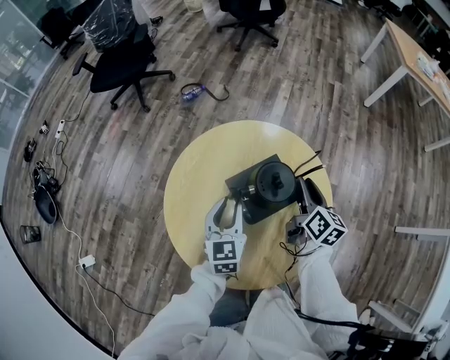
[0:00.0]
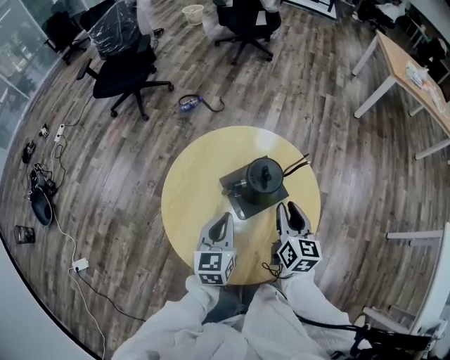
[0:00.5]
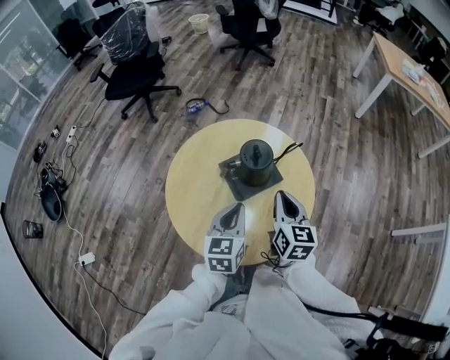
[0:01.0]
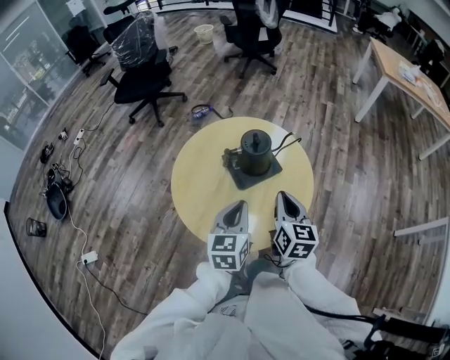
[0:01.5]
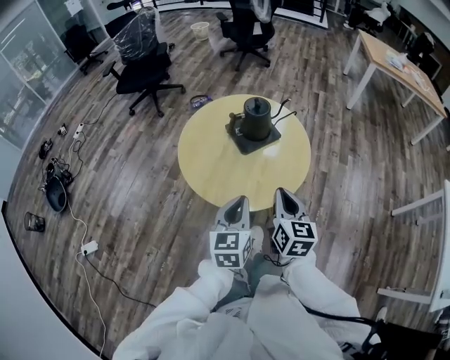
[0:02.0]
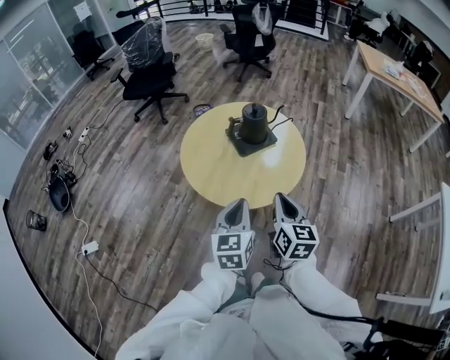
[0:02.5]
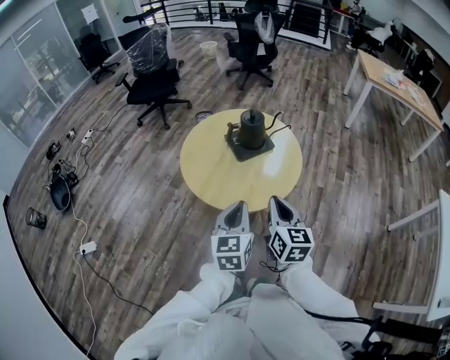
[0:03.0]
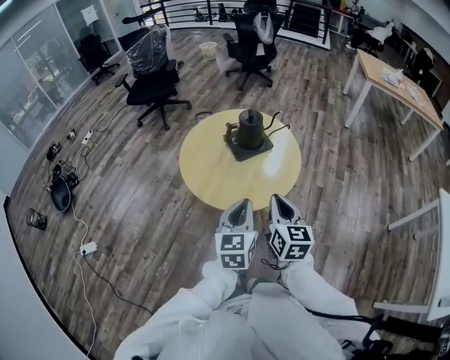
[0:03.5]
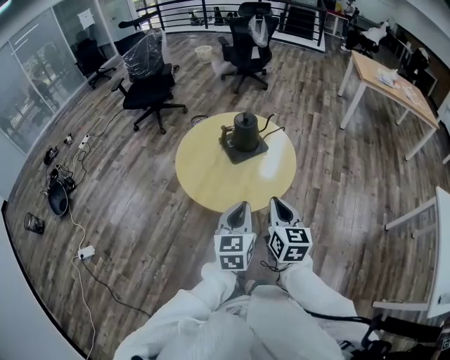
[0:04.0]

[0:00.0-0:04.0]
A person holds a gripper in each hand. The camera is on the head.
0:00.0 to 0:02.0: The grippers both shift backward by approximately 35 cm. The right gripper rotates roughly 20 degrees, and closes its fingers; the left gripper closes.
0:02.0 to 0:04.0: The left gripper heads to the right and backward, covering some 10 cm, while the right gripper heads backward, covering about 5 cm.

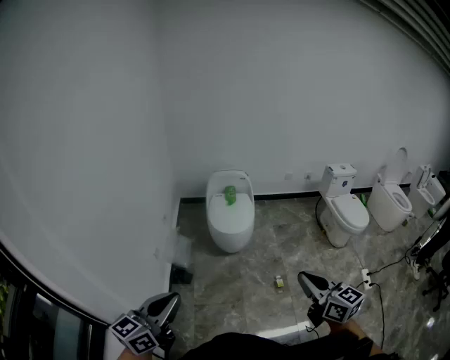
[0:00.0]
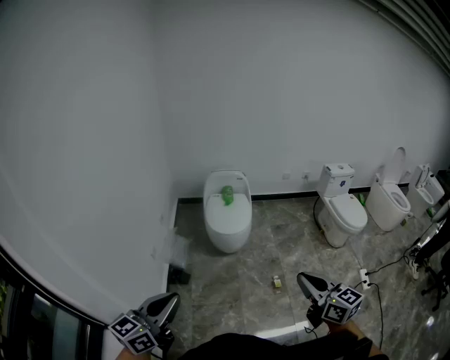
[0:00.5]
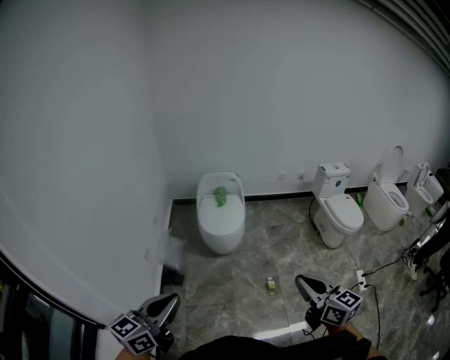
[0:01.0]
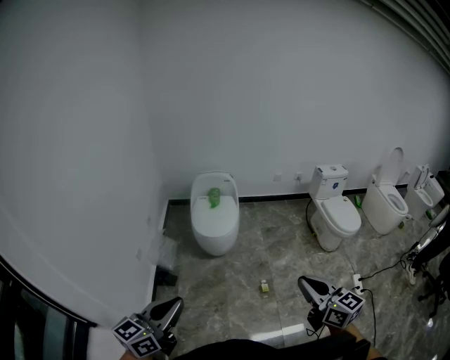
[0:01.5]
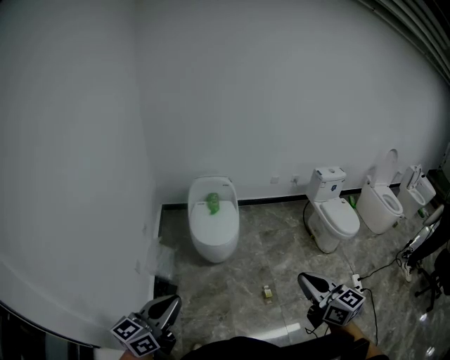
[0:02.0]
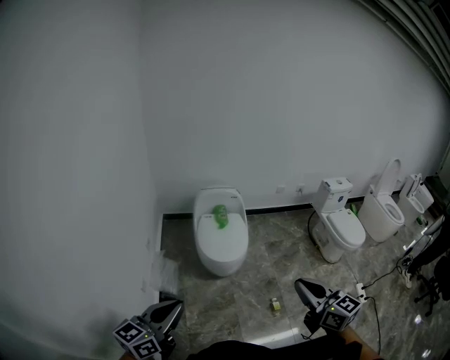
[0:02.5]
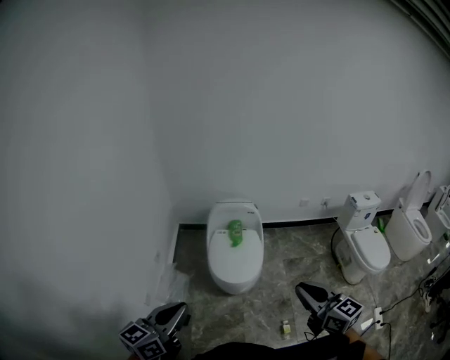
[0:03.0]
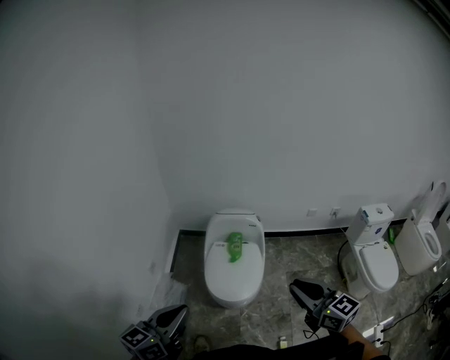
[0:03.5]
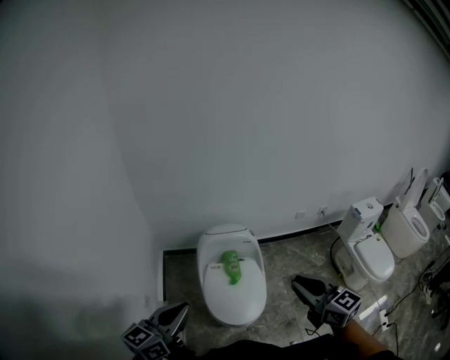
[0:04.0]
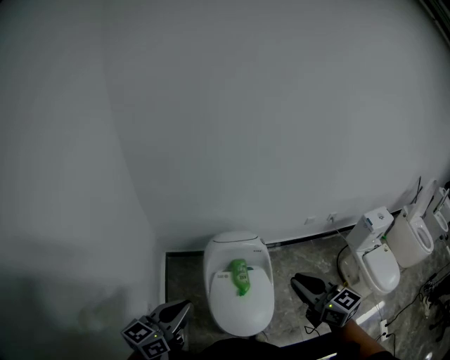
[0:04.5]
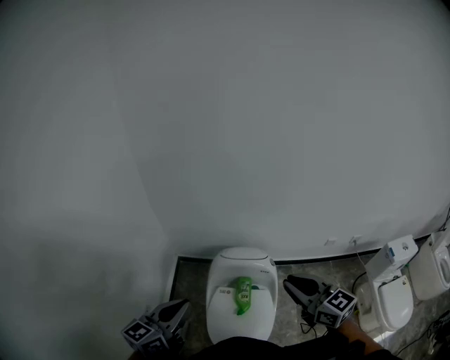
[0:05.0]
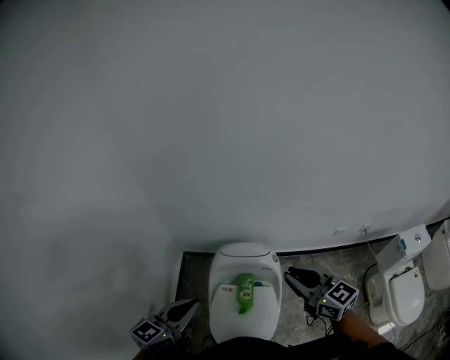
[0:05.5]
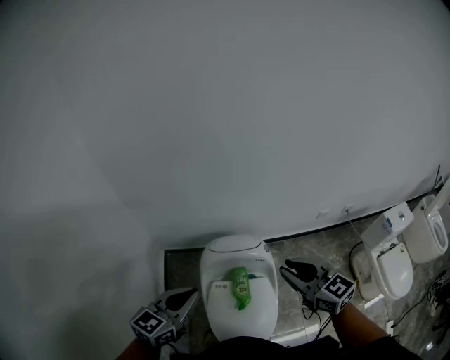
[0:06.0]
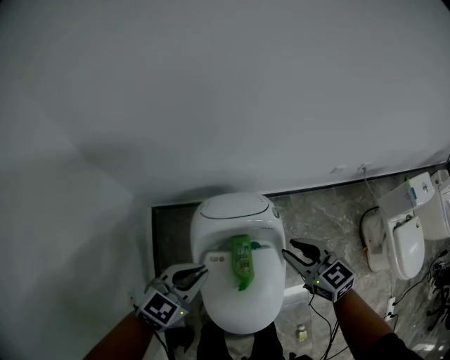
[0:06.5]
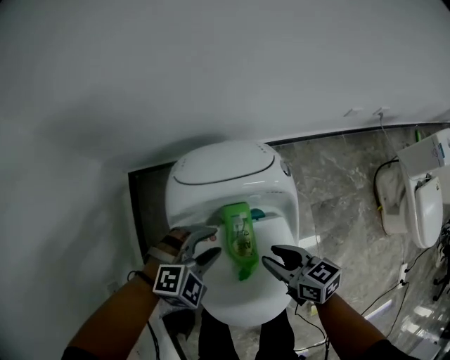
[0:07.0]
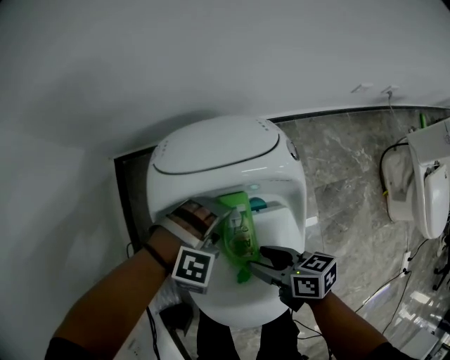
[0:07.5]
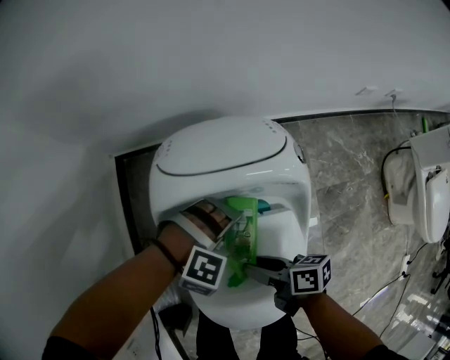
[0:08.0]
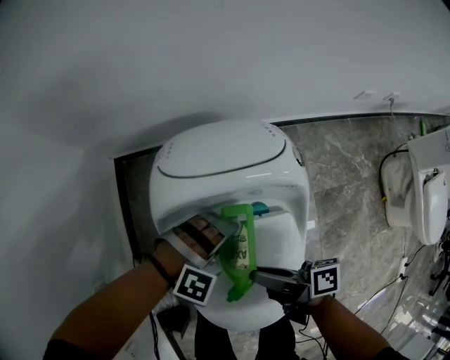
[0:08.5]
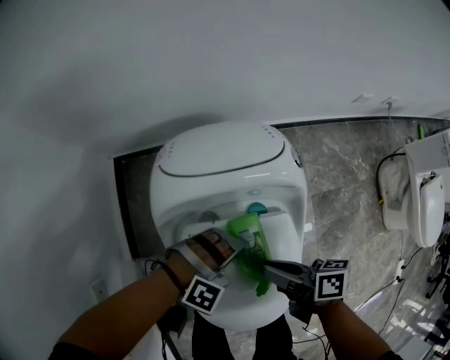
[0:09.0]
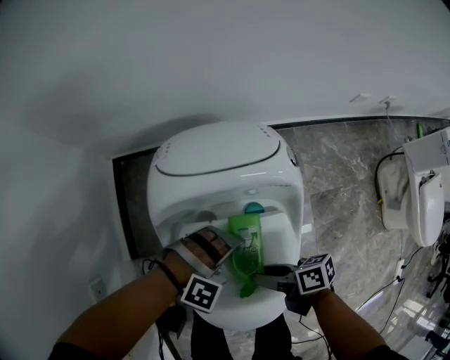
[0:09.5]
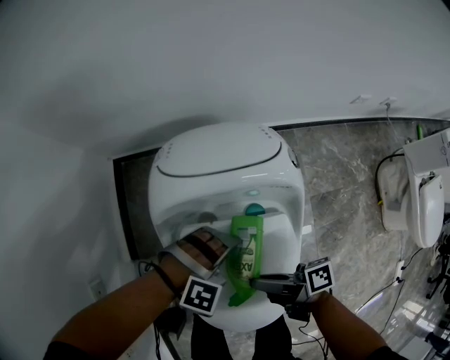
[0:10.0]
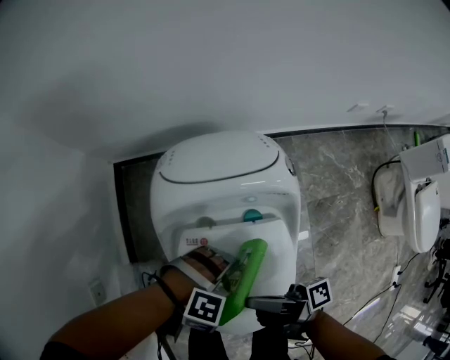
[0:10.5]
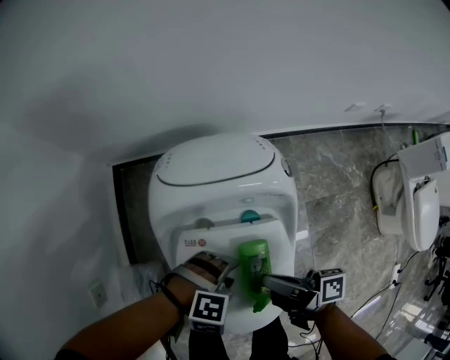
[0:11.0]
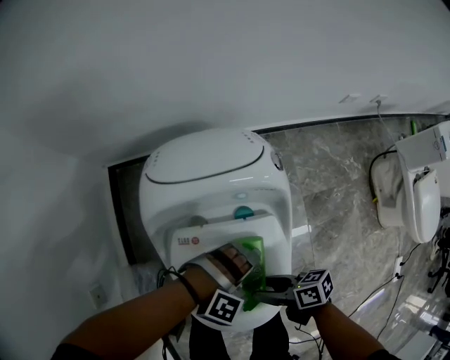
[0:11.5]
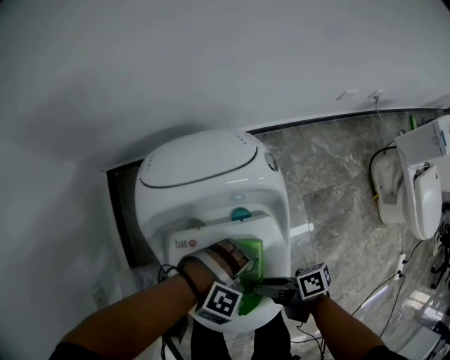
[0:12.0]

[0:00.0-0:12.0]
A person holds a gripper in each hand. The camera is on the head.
0:00.0 to 0:02.0: The grippers both shift forward by approximately 15 cm. The left gripper reaches approximately 15 cm to the right, then returns. Meanwhile the right gripper moves approximately 15 cm to the right and comes back.
0:02.0 to 0:04.0: The pair of grippers is taken forward, about 70 cm.
0:04.0 to 0:06.0: The grippers both shift forward by about 40 cm.
0:06.0 to 0:08.0: The two grippers go approximately 70 cm downward. The left gripper rolls clockwise, seen from behind, by approximately 80 degrees, and opens its fingers, while the right gripper twists about 70 degrees clockwise, seen from behind, and opens its fingers.
0:08.0 to 0:10.0: The left gripper moves some 5 cm; the right gripper moves up and down over approximately 5 cm, changing direction 2 times, and turns by approximately 20 degrees.
0:10.0 to 0:12.0: The left gripper moves about 10 cm, and opens up. Meanwhile the right gripper goes upward and returns, about 5 cm each way, and closes, then reopens.

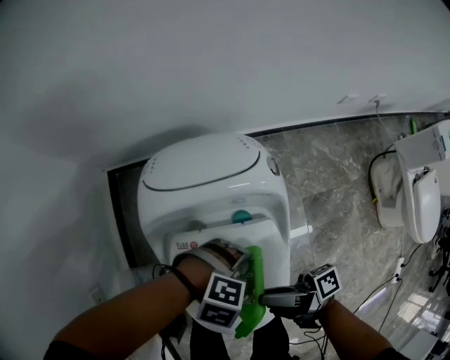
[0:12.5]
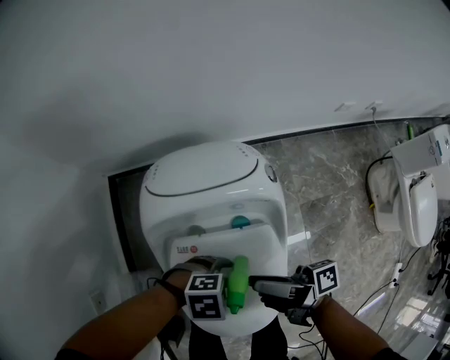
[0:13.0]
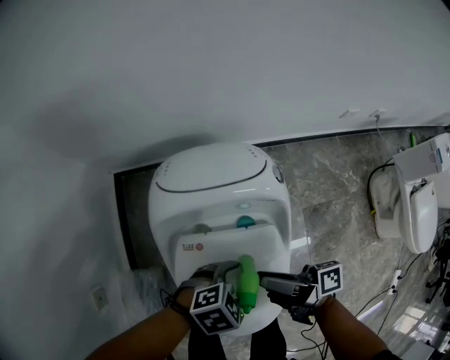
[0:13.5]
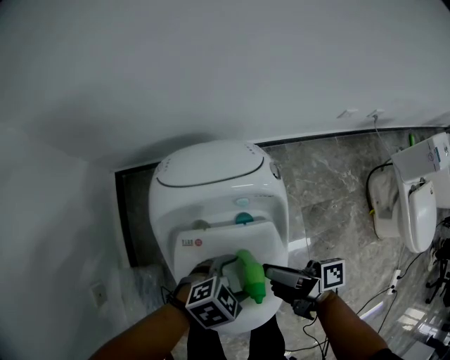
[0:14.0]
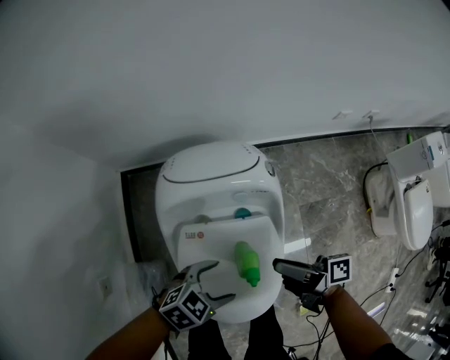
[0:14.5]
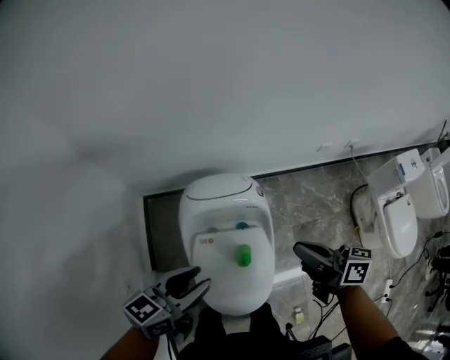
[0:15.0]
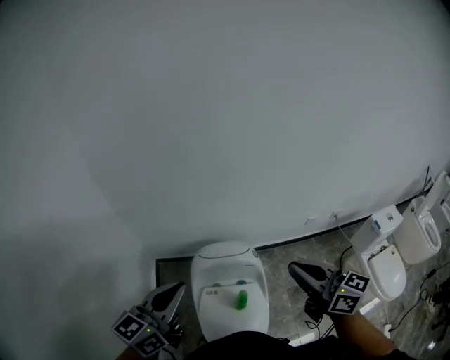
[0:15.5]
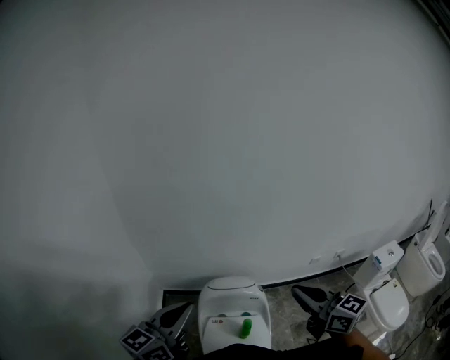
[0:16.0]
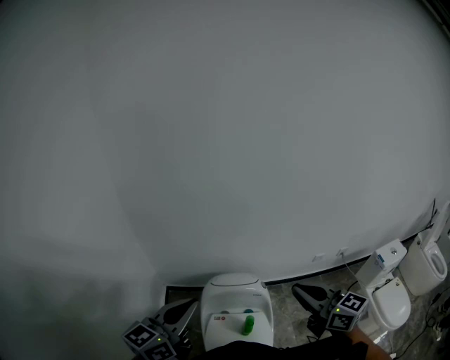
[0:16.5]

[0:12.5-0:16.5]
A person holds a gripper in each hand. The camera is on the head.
0:12.5 to 0:14.5: The left gripper shifts about 10 cm upward, and rotates around the line of its fingers by about 50 degrees, counterclockwise from behind, while the right gripper moves some 10 cm, and turns by some 20 degrees.
0:14.5 to 0:16.5: The two grippers go approximately 70 cm upward. The left gripper tilts its fingers roughly 50 degrees upward, and closes up, while the right gripper rolls counterclockwise, seen from behind, by about 80 degrees, and closes its fingers.

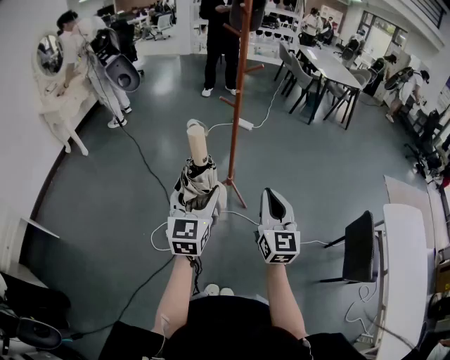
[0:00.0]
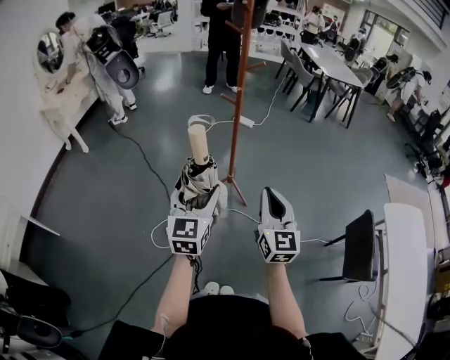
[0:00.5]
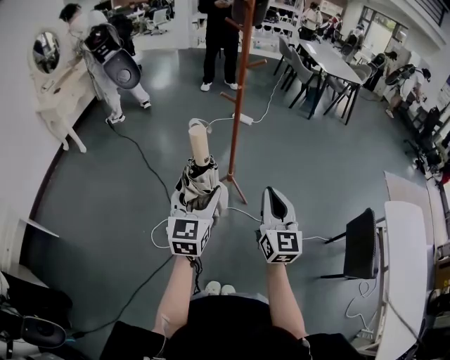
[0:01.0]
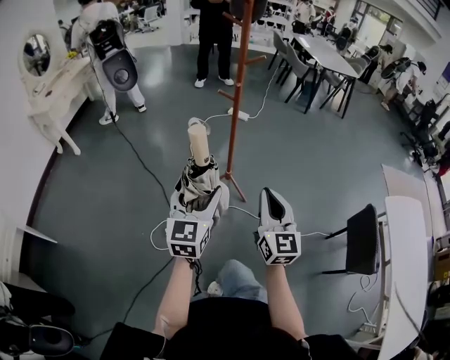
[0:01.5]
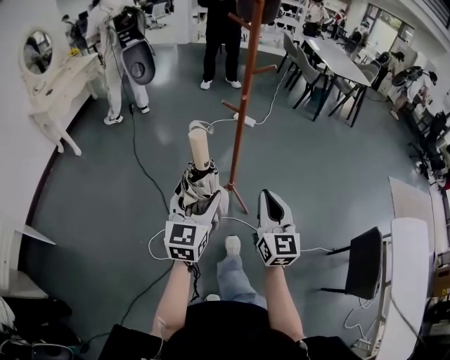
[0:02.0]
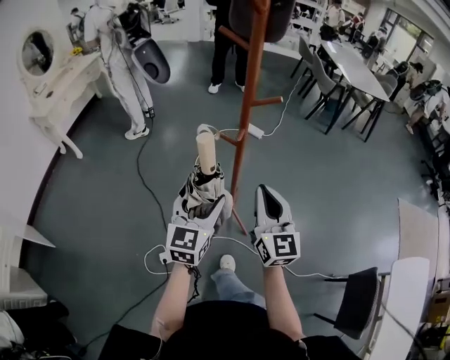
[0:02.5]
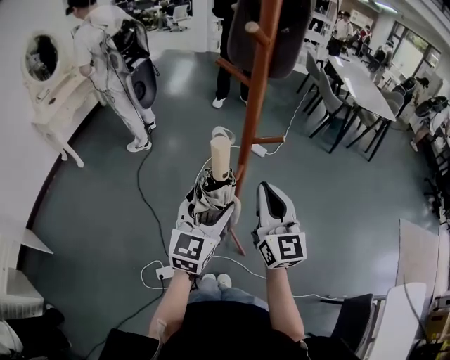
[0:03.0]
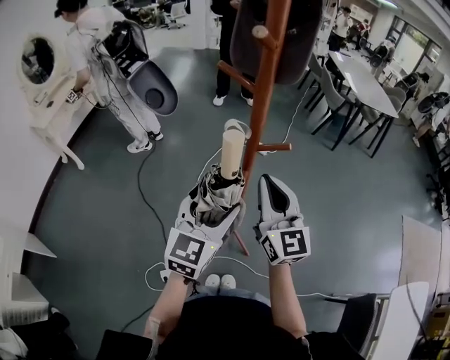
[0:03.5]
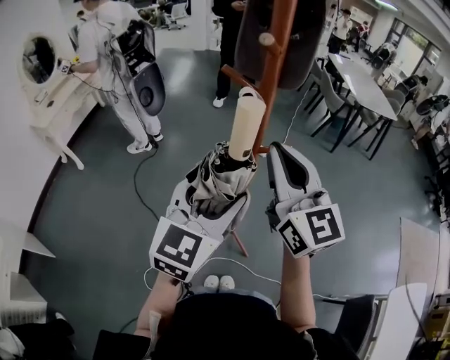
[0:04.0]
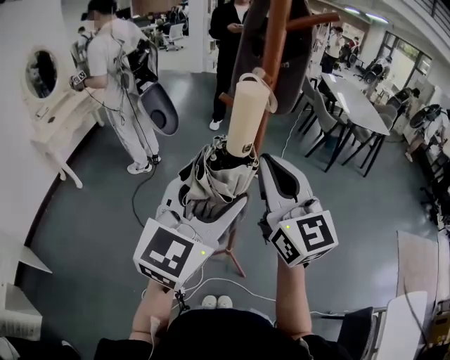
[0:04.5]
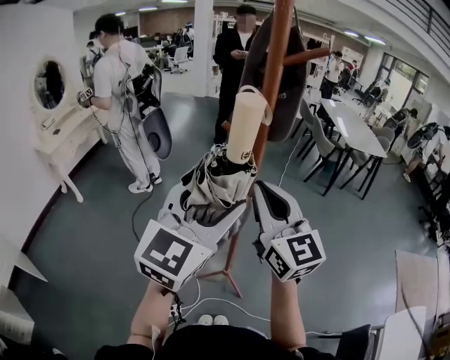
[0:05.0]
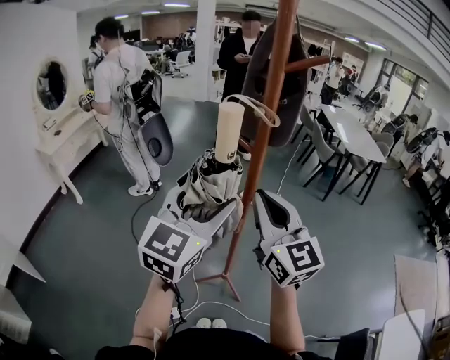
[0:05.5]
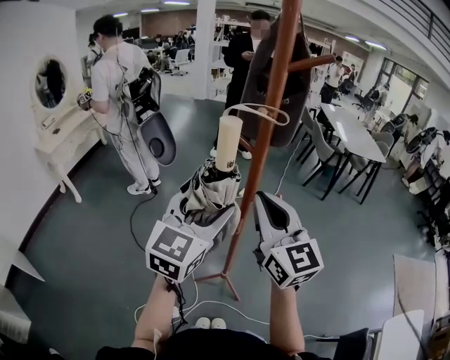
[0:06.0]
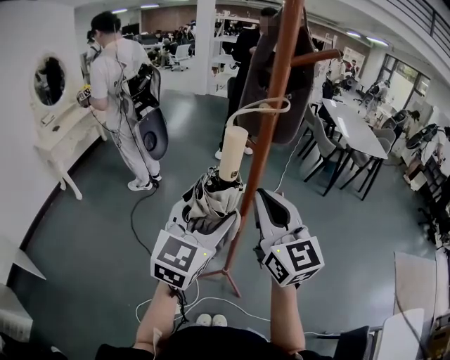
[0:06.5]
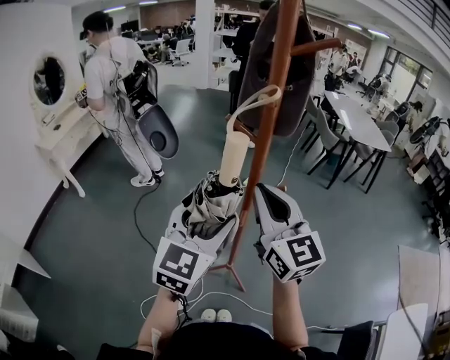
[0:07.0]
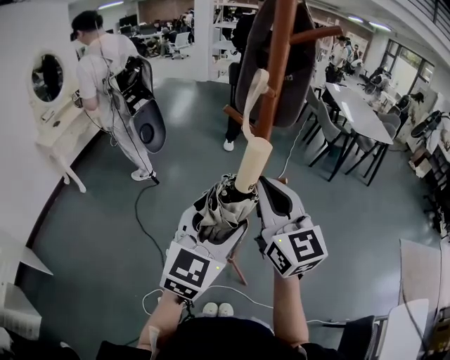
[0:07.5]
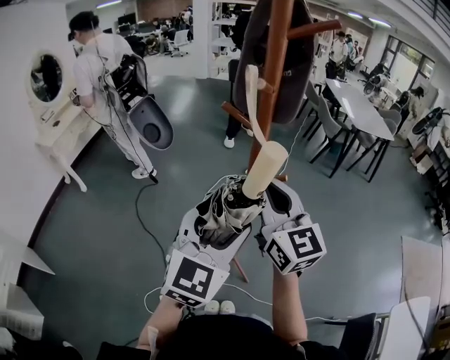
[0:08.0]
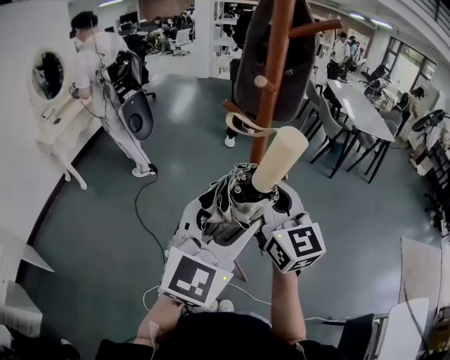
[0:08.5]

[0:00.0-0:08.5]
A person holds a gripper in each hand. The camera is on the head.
0:00.0 to 0:02.0: Both grippers travel together forward, about 15 cm.
0:02.0 to 0:04.0: The two grippers go roughly 40 cm forward and upward. The right gripper swivels about 20 degrees.
0:06.5 to 0:08.5: The left gripper goes approximately 10 cm backward and to the right.
